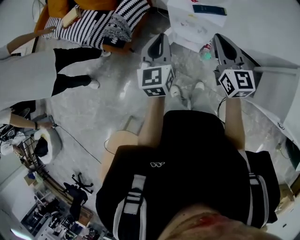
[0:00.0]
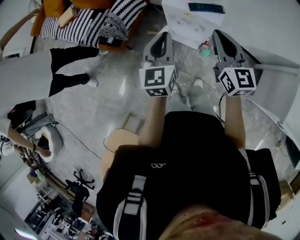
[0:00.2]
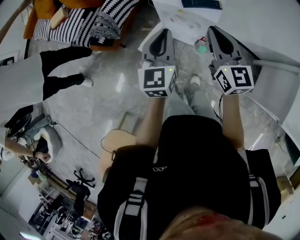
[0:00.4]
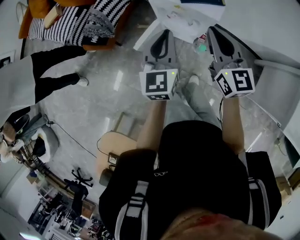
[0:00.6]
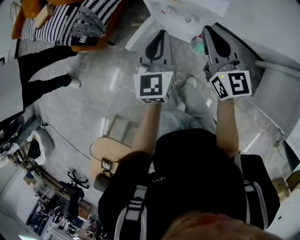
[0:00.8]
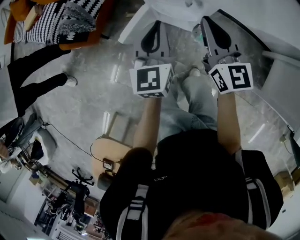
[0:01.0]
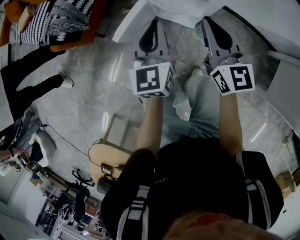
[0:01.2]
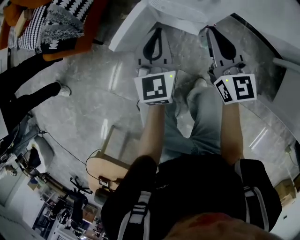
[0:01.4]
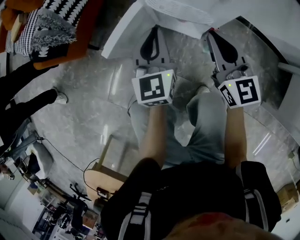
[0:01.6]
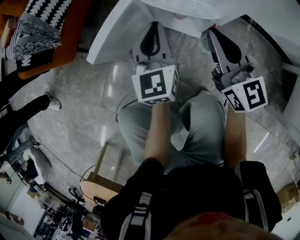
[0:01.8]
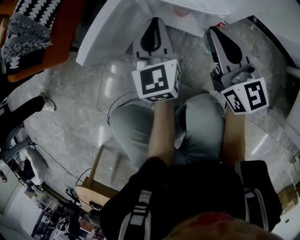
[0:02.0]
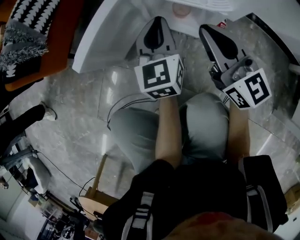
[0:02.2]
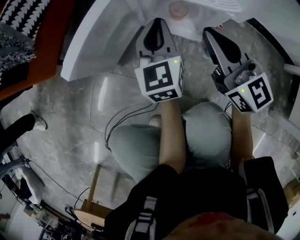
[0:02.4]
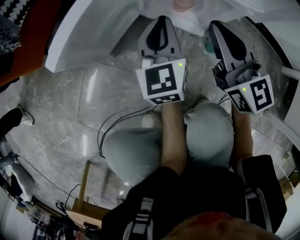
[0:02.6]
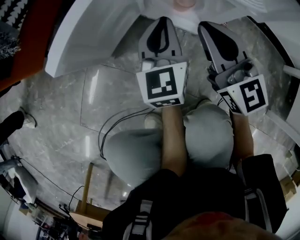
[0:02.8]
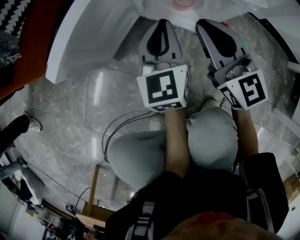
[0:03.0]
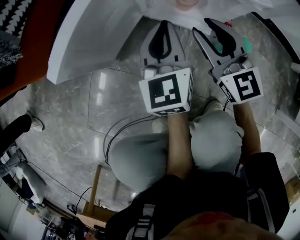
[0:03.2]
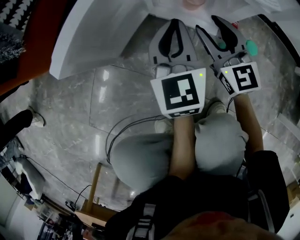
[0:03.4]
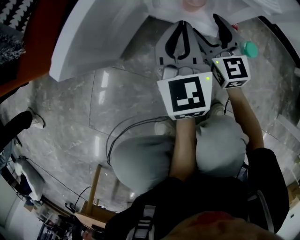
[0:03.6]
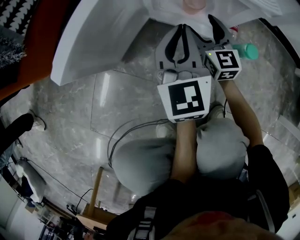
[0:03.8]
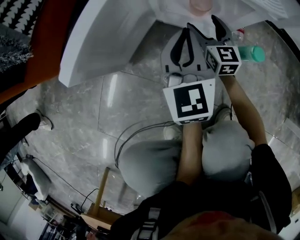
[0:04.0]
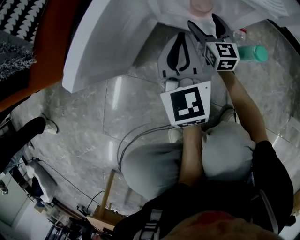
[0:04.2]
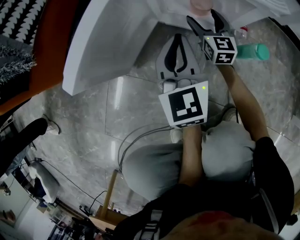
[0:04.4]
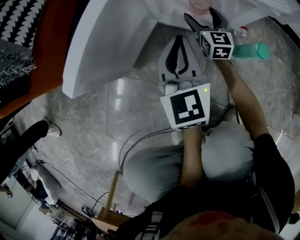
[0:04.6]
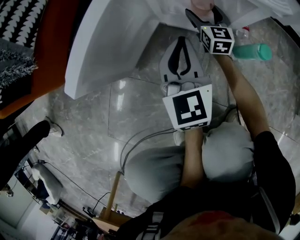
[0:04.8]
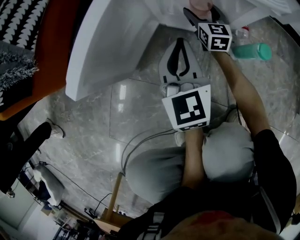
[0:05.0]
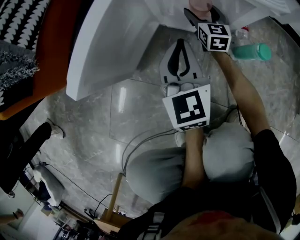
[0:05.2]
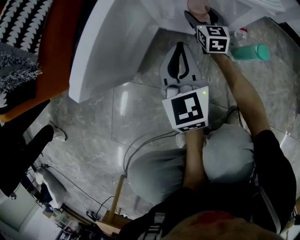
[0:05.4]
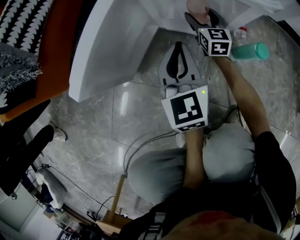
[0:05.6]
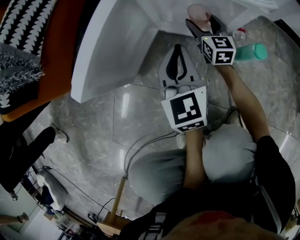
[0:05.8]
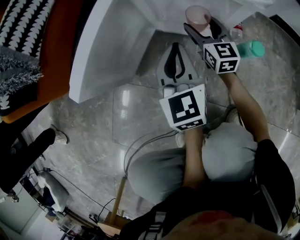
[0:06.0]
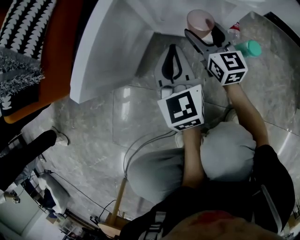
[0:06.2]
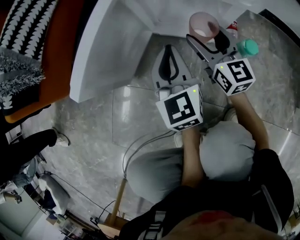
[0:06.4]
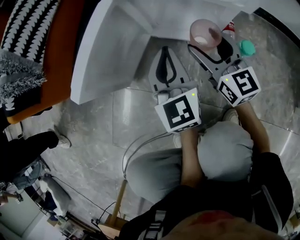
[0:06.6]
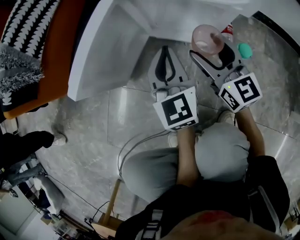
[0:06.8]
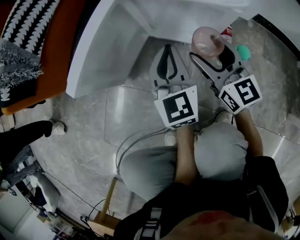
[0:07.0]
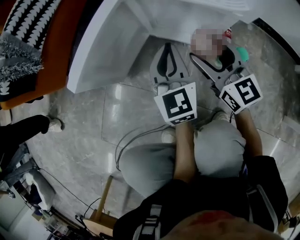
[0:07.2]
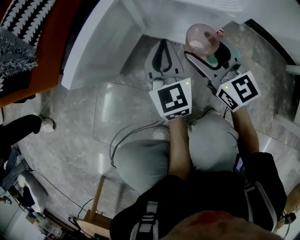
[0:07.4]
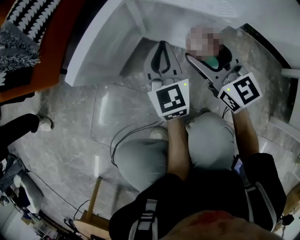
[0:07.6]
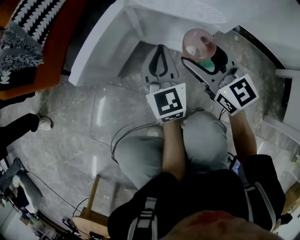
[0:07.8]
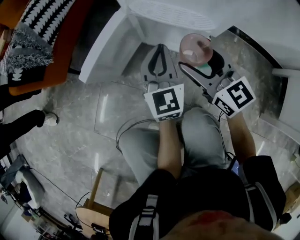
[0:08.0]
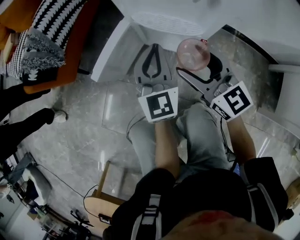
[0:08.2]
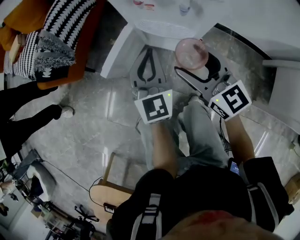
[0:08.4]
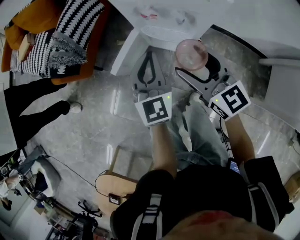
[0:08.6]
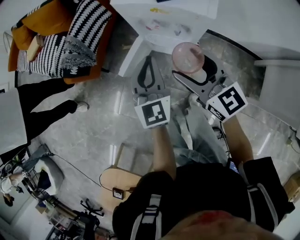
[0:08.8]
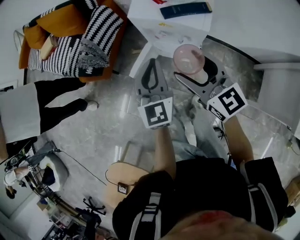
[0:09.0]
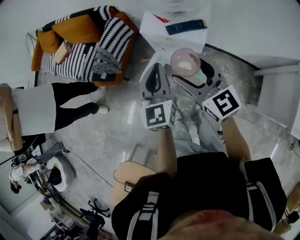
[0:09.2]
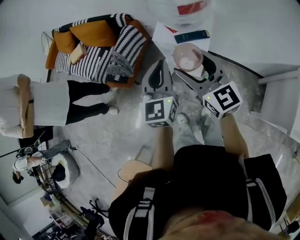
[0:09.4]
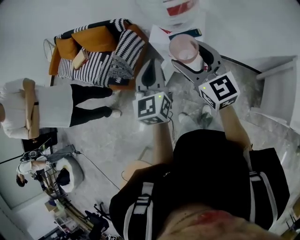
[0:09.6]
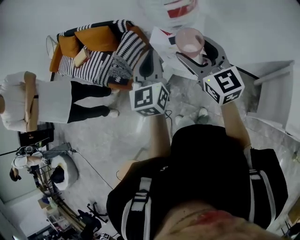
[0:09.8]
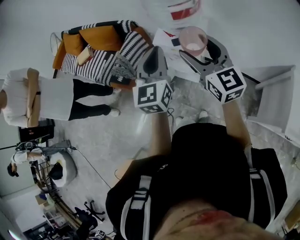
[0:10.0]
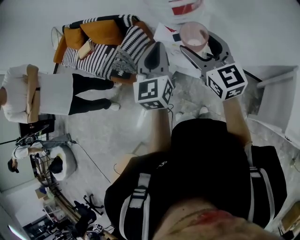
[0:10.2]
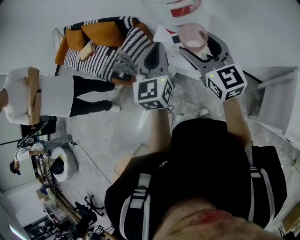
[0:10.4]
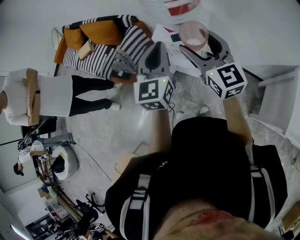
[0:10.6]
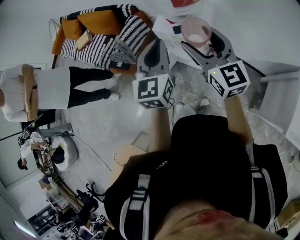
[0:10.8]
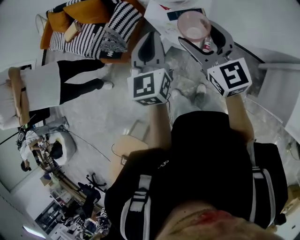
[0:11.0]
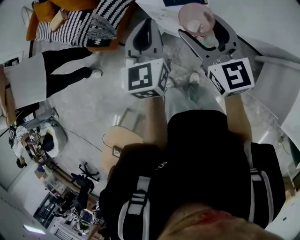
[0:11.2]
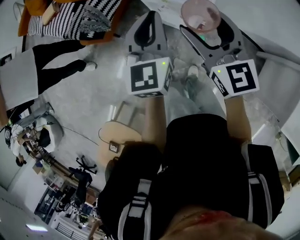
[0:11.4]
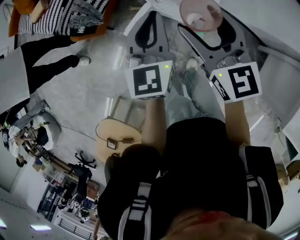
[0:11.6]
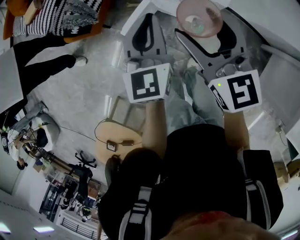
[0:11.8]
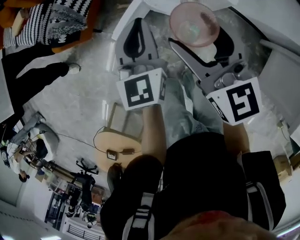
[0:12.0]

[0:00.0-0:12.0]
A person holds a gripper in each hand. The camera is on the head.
0:00.0 to 0:01.6: Both grippers travel together downward, roughly 50 cm.
0:01.6 to 0:03.0: The grippers both shift downward by roughly 20 cm.
0:03.0 to 0:04.4: The right gripper moves downward and forward, some 25 cm, rotates roughly 20 degrees, and opens its fingers.
0:04.4 to 0:06.0: The grippers stay close to where they were, moving slightly.
0:06.0 to 0:07.6: The left gripper is displaced upward by about 5 cm. Meanwhile the right gripper heads upward and backward, covering approximately 20 cm, and swivels some 20 degrees.
0:07.6 to 0:09.0: Both grippers travel together upward, approximately 50 cm.
0:09.0 to 0:10.4: The grippers both shift upward by roughly 25 cm.
0:10.4 to 0:12.0: Both grippers move downward, about 35 cm.

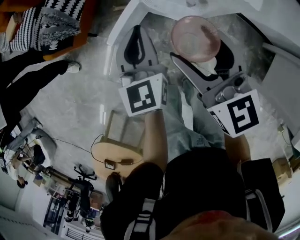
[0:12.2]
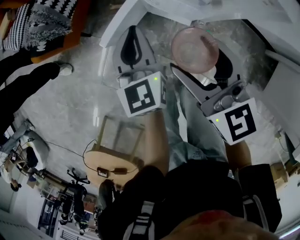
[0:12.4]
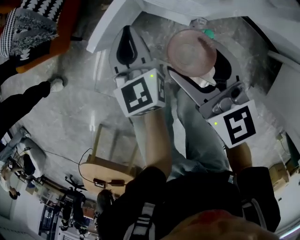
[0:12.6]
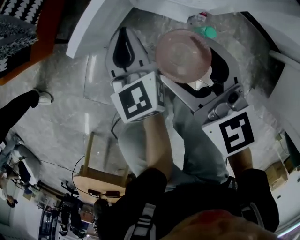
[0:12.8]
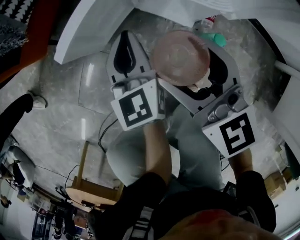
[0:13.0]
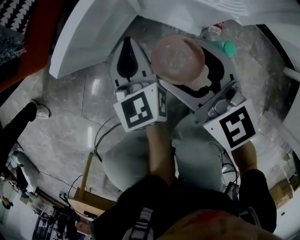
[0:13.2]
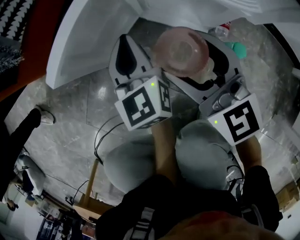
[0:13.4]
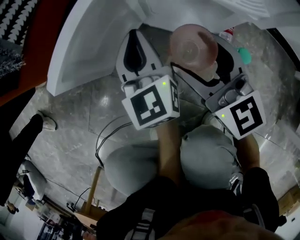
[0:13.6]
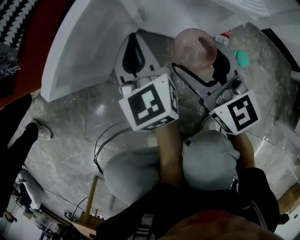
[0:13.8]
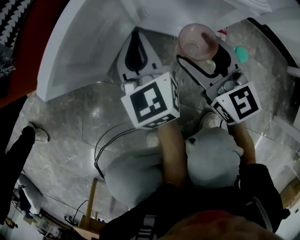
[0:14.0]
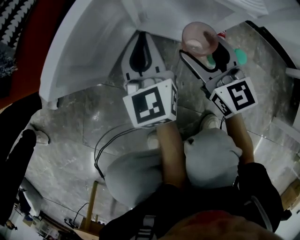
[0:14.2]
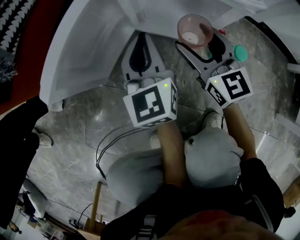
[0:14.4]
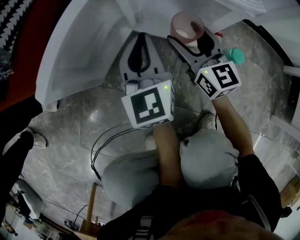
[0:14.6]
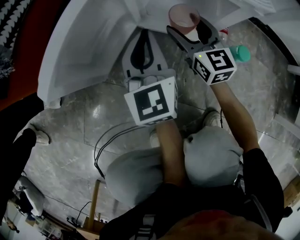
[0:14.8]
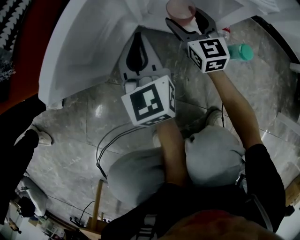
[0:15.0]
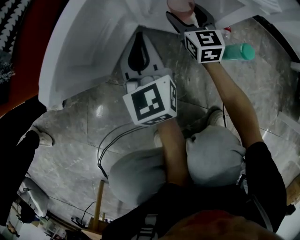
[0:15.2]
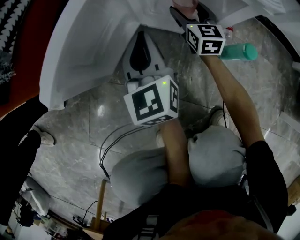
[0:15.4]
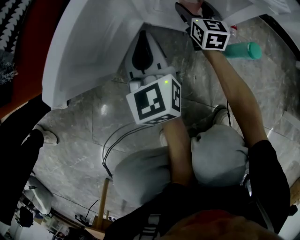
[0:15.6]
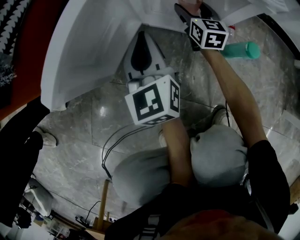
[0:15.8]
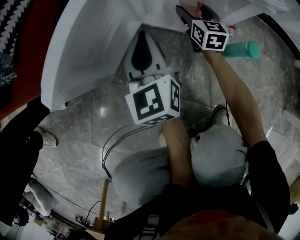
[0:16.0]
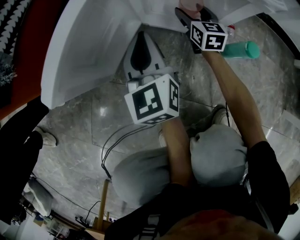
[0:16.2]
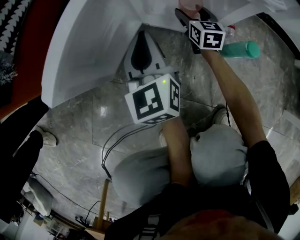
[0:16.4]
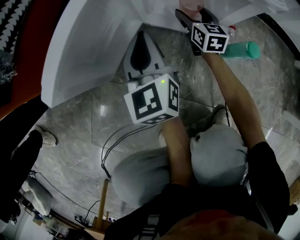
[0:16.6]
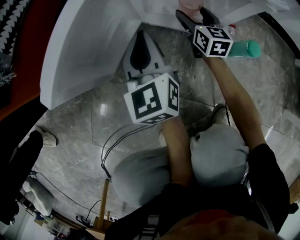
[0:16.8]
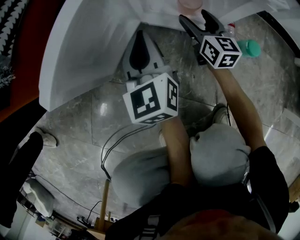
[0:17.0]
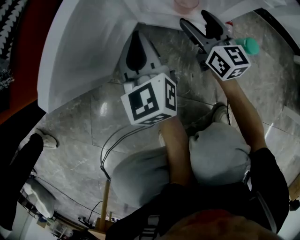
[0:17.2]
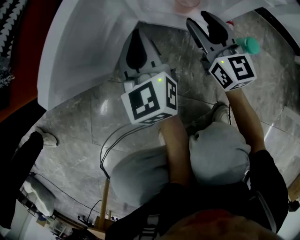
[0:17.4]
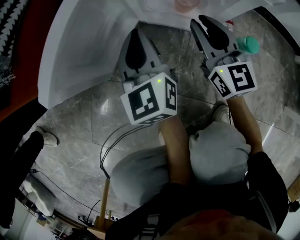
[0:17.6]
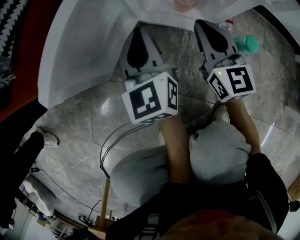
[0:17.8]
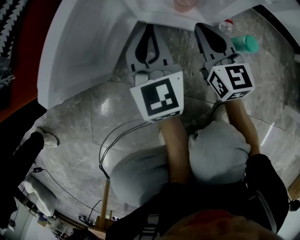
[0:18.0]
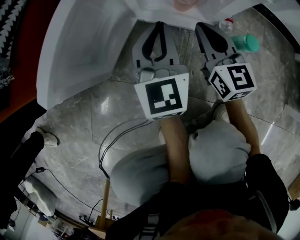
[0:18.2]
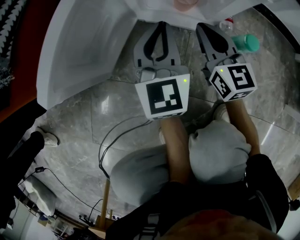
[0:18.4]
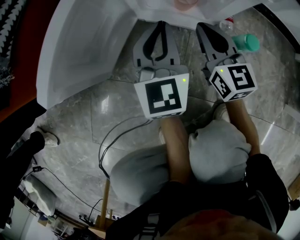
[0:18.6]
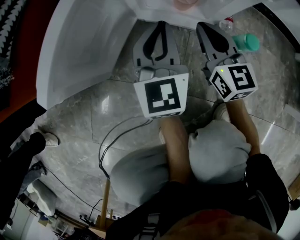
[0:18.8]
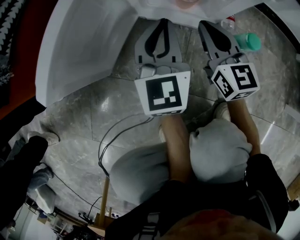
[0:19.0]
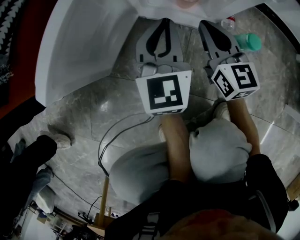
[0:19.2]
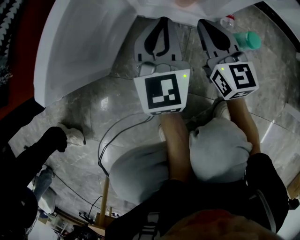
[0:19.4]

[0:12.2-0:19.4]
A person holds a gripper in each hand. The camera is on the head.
0:12.2 to 0:13.6: Both grippers travel together downward, some 40 cm.
0:13.6 to 0:15.0: The right gripper moves downward and forward, roughly 20 cm, and rotates approximately 20 degrees.
0:15.0 to 0:16.6: The right gripper travels downward by approximately 10 cm.
0:16.6 to 0:18.0: The right gripper travels backward and upward by roughly 15 cm, and closes its fingers.
0:18.0 to 0:19.4: There are only small adjustments of the grippers.

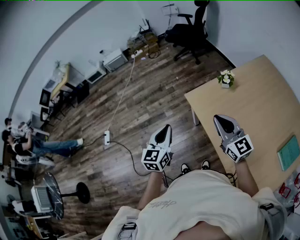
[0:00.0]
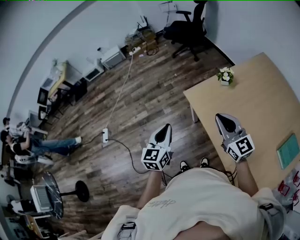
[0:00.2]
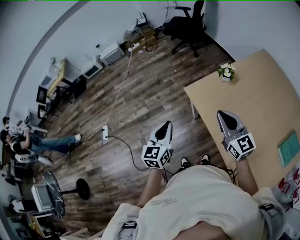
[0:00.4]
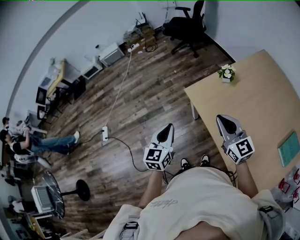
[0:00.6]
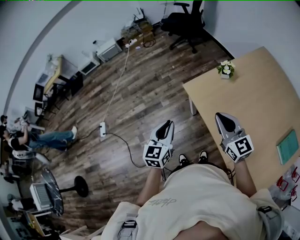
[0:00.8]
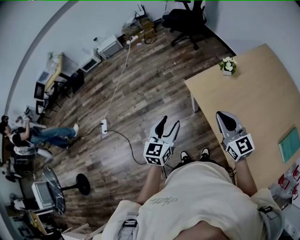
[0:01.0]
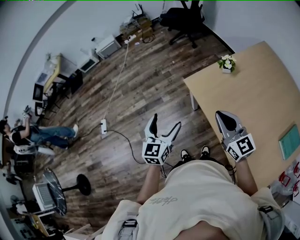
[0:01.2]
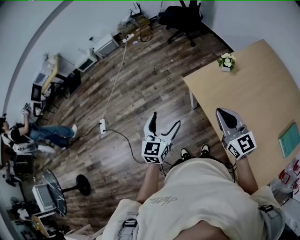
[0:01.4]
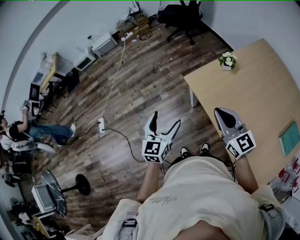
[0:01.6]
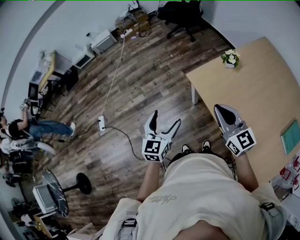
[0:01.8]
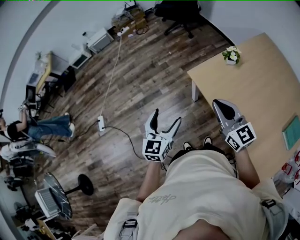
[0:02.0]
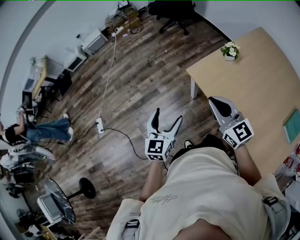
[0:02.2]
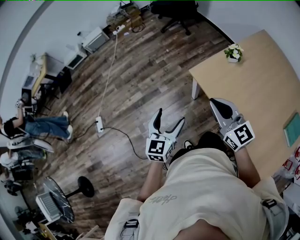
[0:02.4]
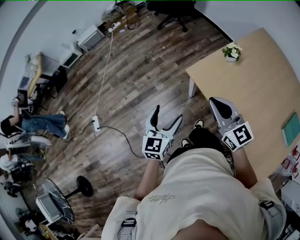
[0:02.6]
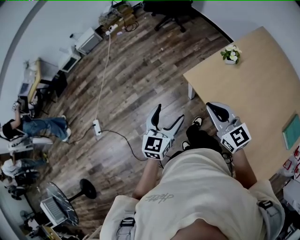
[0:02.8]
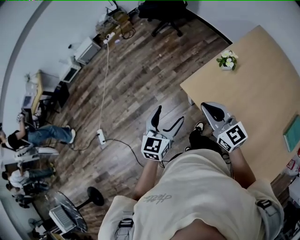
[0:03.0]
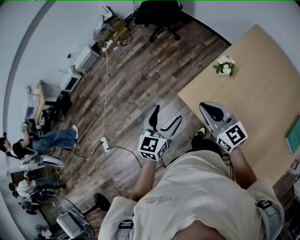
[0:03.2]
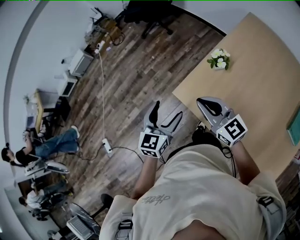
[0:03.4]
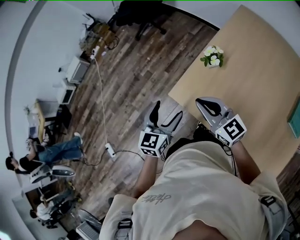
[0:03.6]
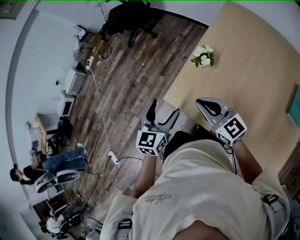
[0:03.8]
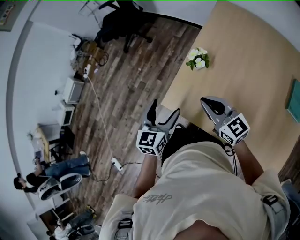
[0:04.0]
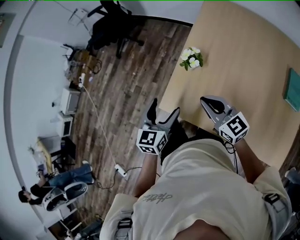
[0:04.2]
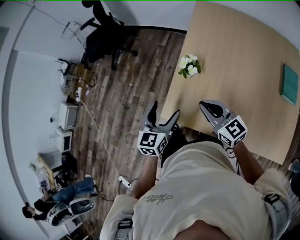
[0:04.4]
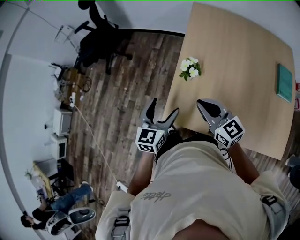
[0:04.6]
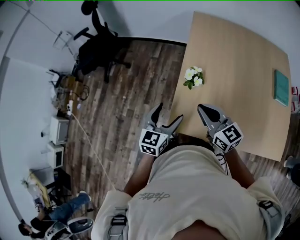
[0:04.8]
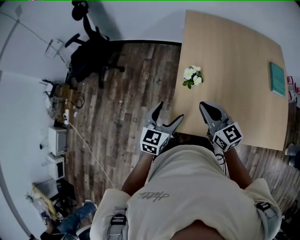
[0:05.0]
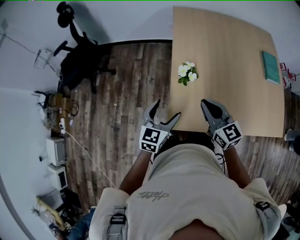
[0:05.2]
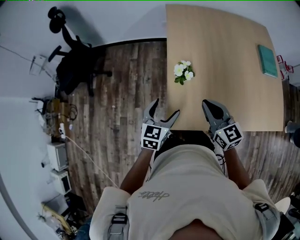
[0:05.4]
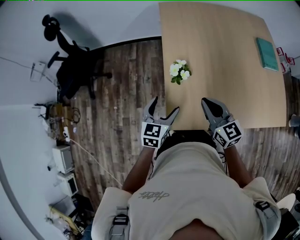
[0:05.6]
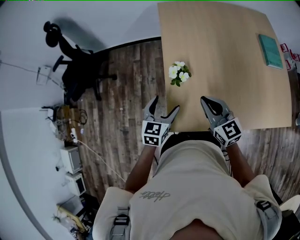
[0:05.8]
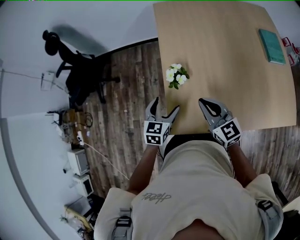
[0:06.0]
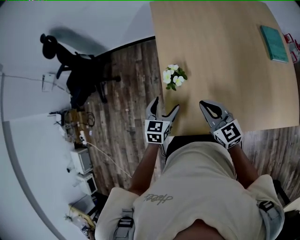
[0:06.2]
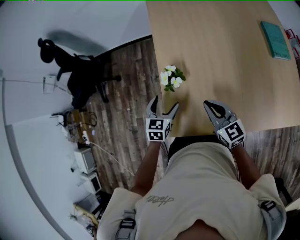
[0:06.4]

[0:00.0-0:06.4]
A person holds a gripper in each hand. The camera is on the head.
0:00.0 to 0:01.6: The left gripper opens its fingers.
0:01.6 to 0:03.2: Both grippers travel together forward, some 15 cm.
0:03.2 to 0:04.8: The left gripper changes place by some 20 cm, and swivels some 40 degrees. Meanwhile the right gripper moves some 15 cm, and turns by about 40 degrees.
0:04.8 to 0:06.4: The right gripper goes some 10 cm to the right and downward, while the left gripper moves forward and downward, approximately 15 cm, and rotates some 20 degrees.
